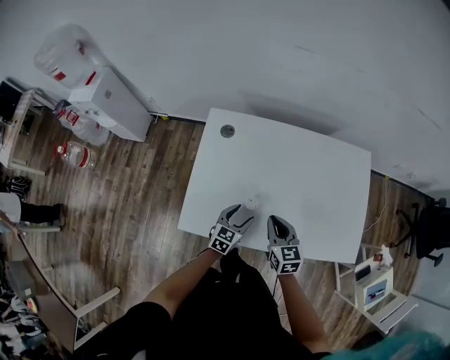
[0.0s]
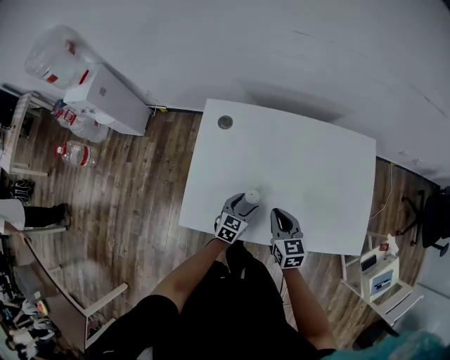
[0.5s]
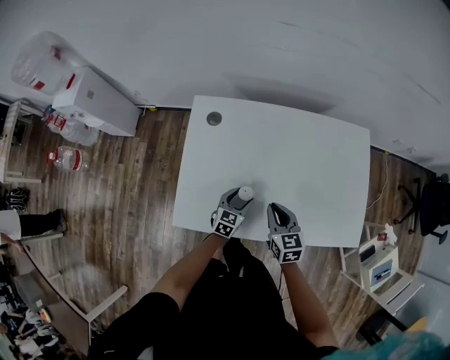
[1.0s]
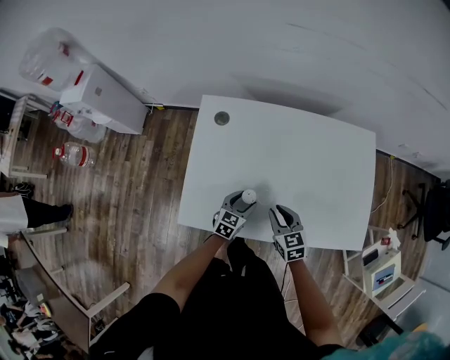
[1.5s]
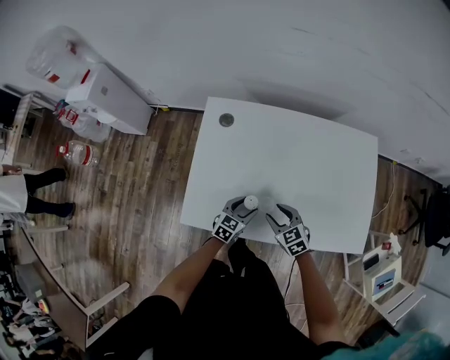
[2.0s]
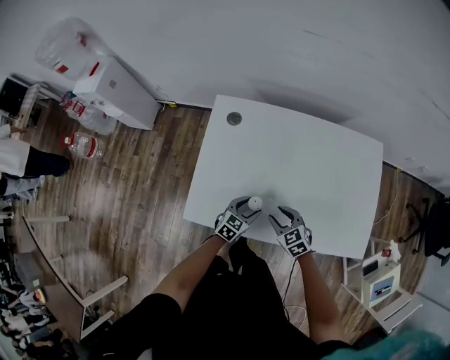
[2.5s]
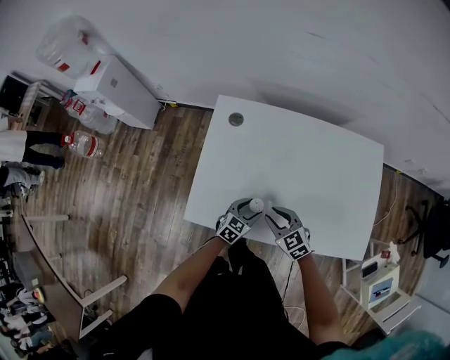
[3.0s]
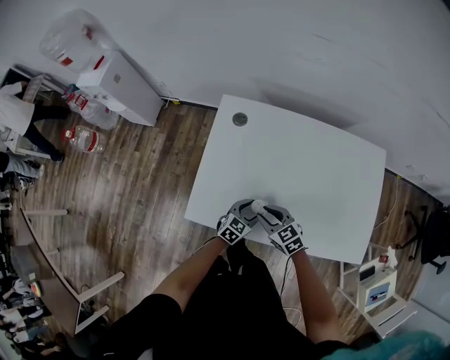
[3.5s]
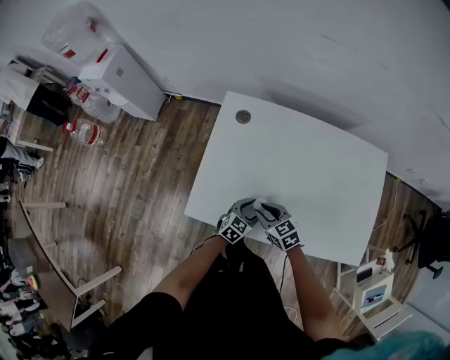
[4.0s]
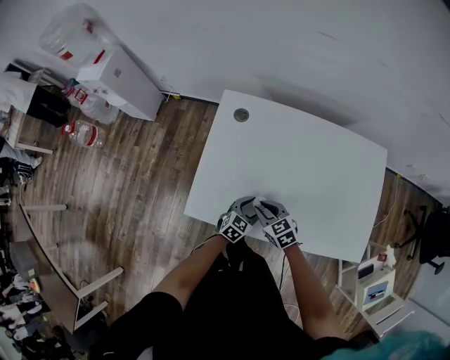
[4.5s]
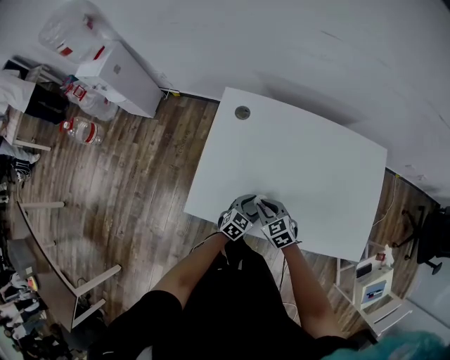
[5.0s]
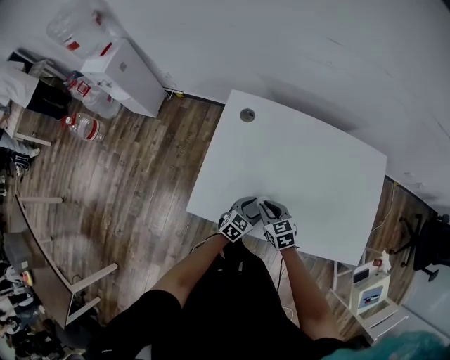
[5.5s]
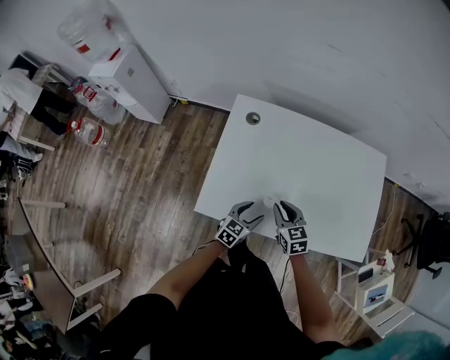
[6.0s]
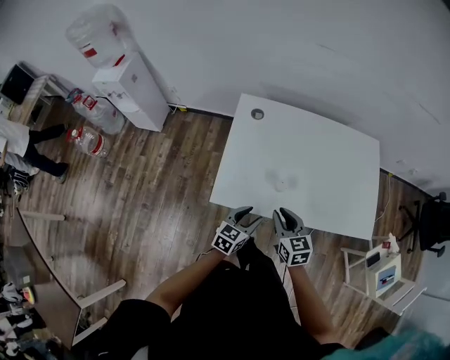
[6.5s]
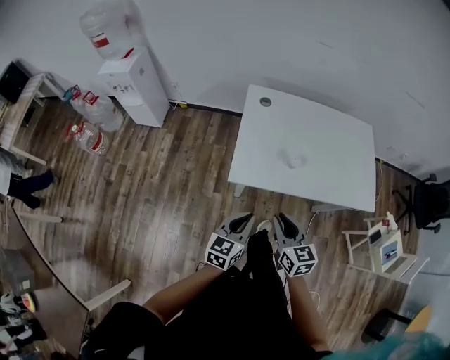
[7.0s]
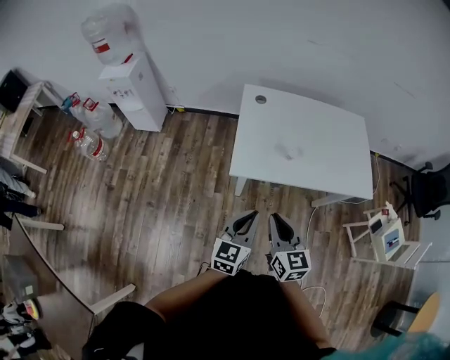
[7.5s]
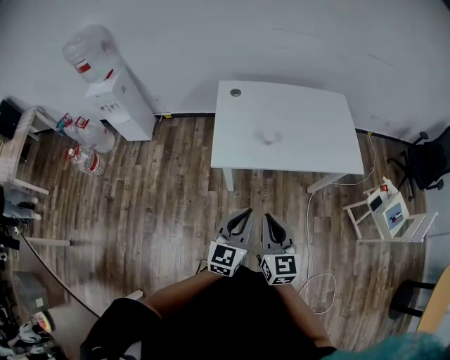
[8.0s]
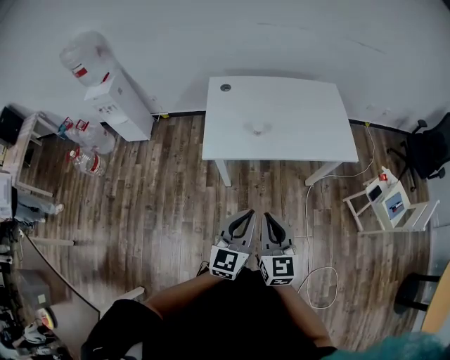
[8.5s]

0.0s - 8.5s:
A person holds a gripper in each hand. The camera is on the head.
0.0s - 2.0s: The right gripper moves downward, some 10 cm, rotates roughly 30 degrees, and opens.
2.0s - 4.0s: The right gripper goes some 5 cm to the left.
4.0s - 6.5s: The left gripper goes approximately 20 cm upward, backward and to the left; the right gripper moves upward and backward, about 15 cm, and rotates roughly 30 degrees.
6.5s - 8.5s: The grippers both shift backward and upward by about 35 cm. The right gripper turns by about 30 degrees, while the left gripper turns by roughly 20 degrees, and closes its fingers.

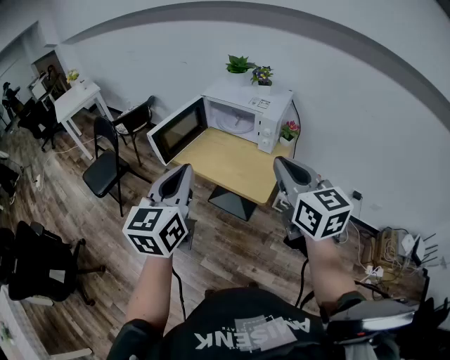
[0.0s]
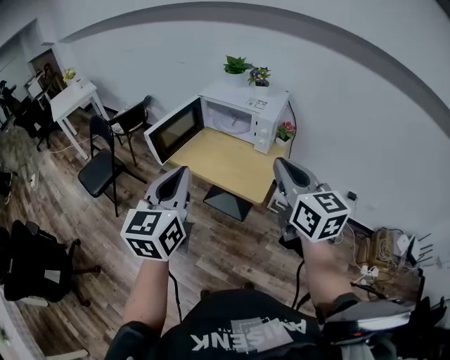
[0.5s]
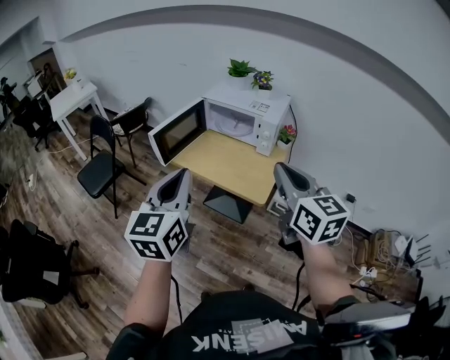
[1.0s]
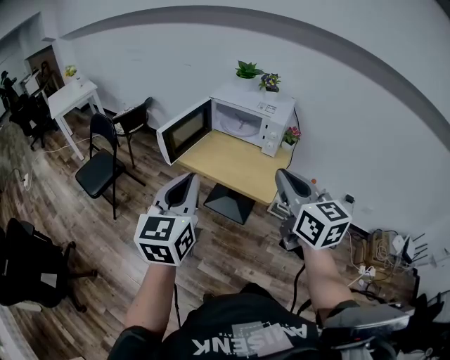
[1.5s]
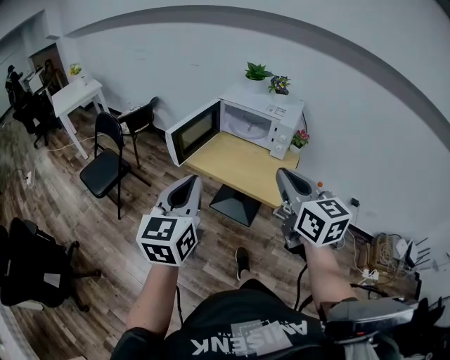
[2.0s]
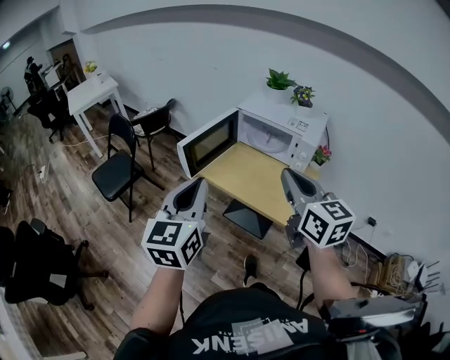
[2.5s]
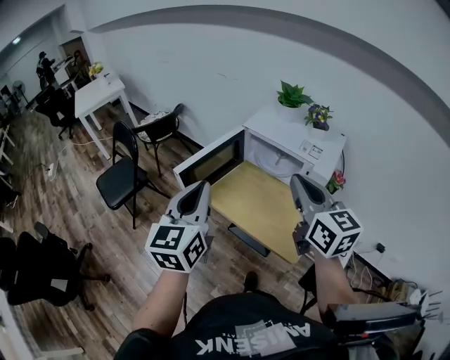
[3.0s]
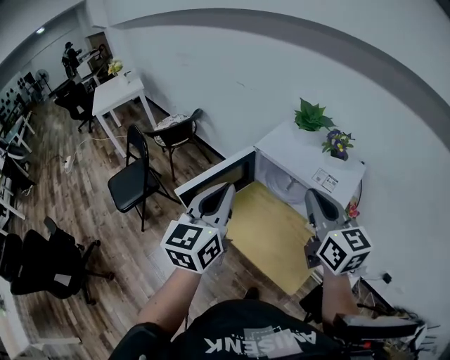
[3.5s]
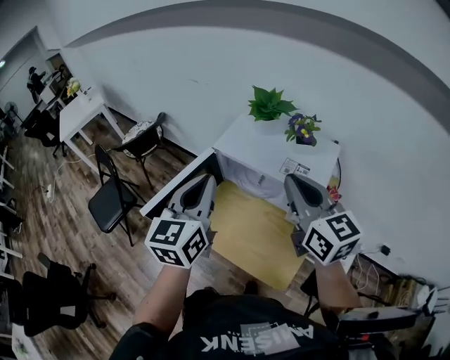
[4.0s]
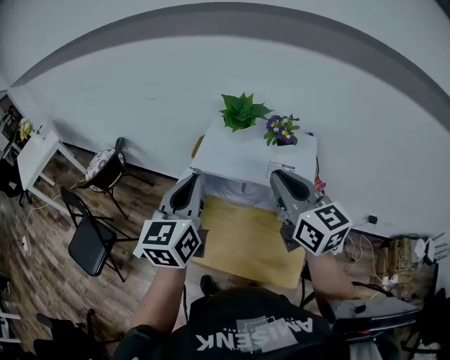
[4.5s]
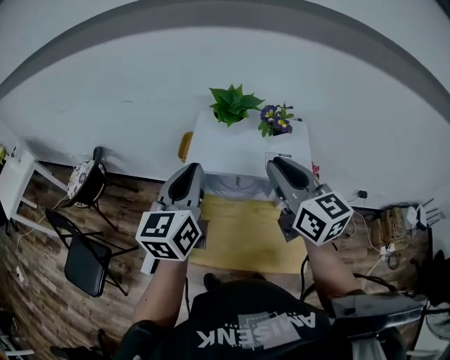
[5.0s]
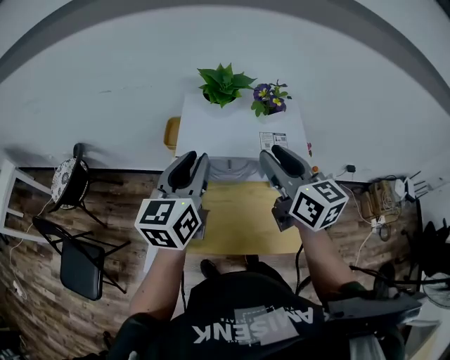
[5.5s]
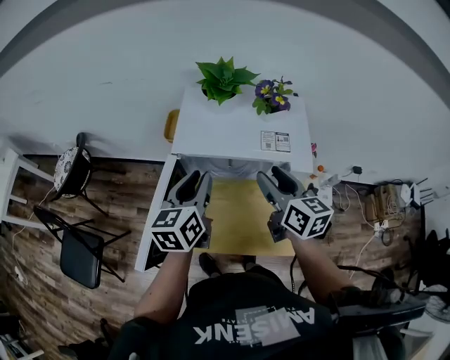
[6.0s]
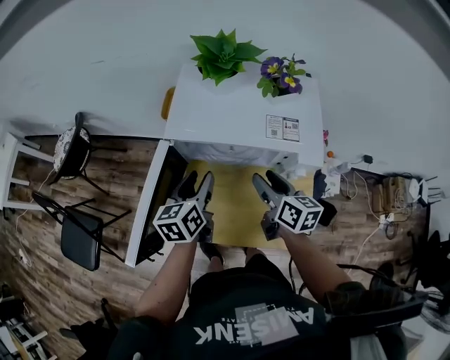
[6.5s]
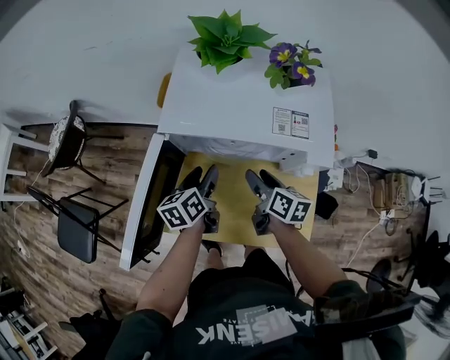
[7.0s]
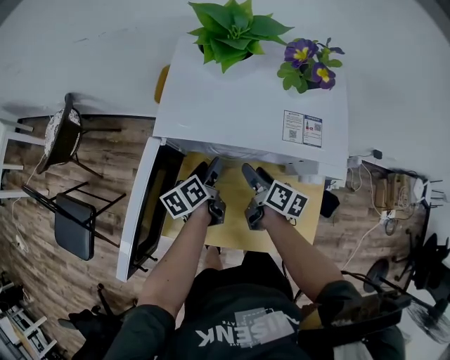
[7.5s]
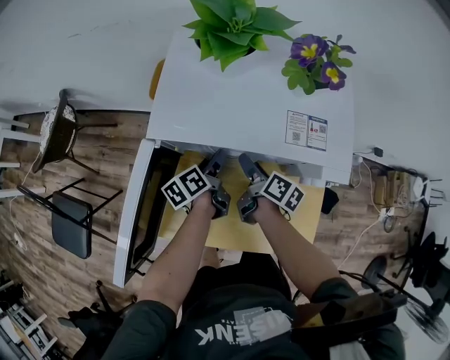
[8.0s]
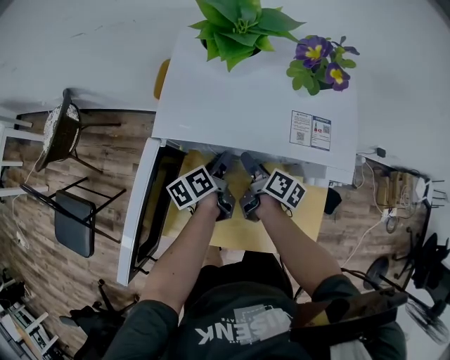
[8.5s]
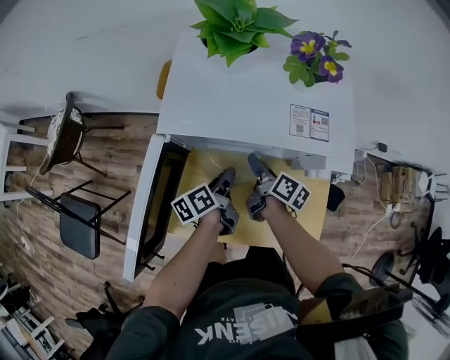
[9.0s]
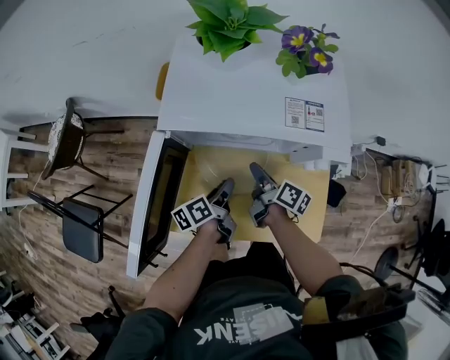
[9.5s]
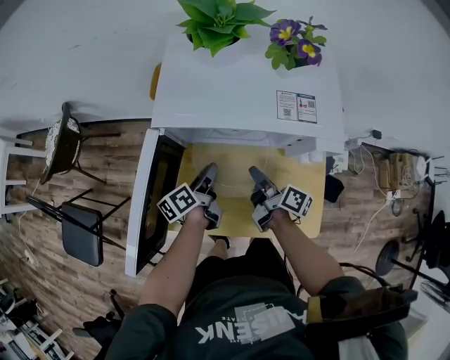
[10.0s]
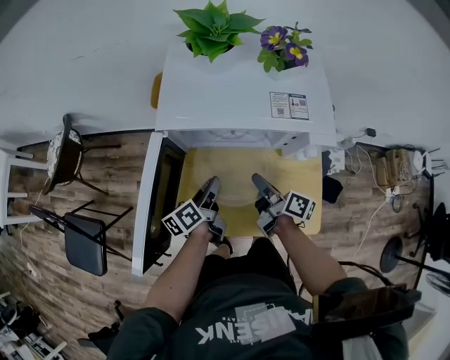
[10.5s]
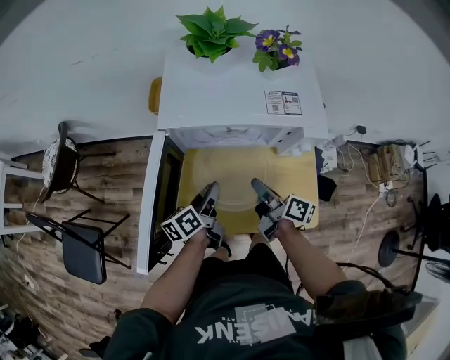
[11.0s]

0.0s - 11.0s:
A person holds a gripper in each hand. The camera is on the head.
0.0s - 2.0s: The grippers both shift to the left by about 10 cm.
2.0s - 3.5s: The two grippers go approximately 35 cm forward.
3.5s - 5.5s: The right gripper shifts by roughly 10 cm, changes its angle by approximately 30 degrees, and opens its fingers. Meanwhile the left gripper moves about 20 cm, changes its angle by roughly 40 degrees, and opens.
5.5s - 7.5s: Both grippers travel together downward, roughly 35 cm. The right gripper rotates around the line of its fingers by some 40 degrees, clockwise from behind, and opens its fingers. The left gripper twists about 40 degrees counterclockwise, seen from behind, and opens its fingers.
7.5s - 9.0s: The left gripper shifts by some 5 cm, and closes its fingers.
9.0s - 11.0s: The left gripper is displaced backward by some 10 cm; the right gripper travels backward and upward by some 15 cm, and closes.

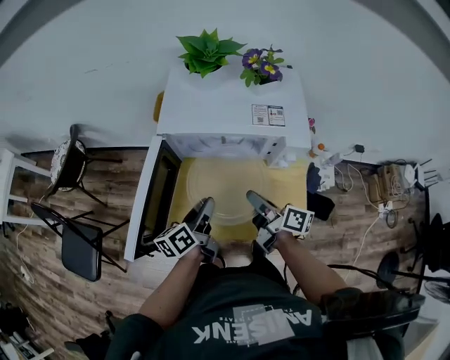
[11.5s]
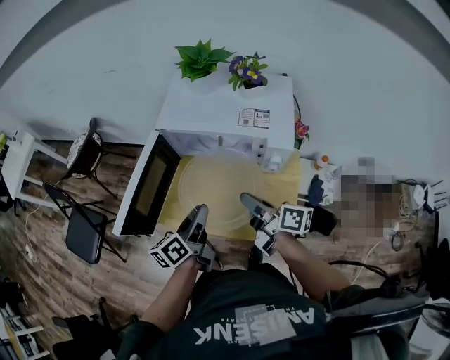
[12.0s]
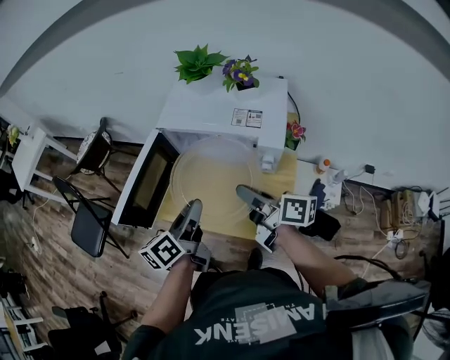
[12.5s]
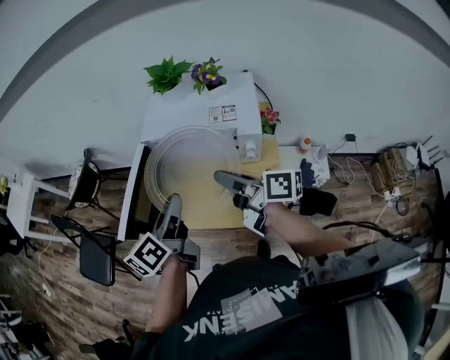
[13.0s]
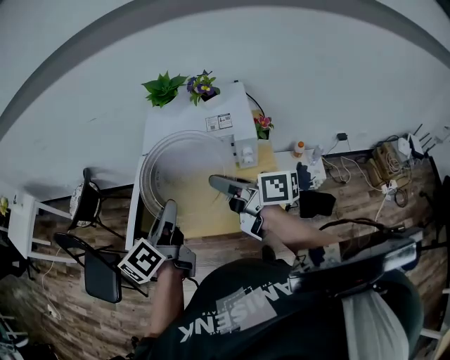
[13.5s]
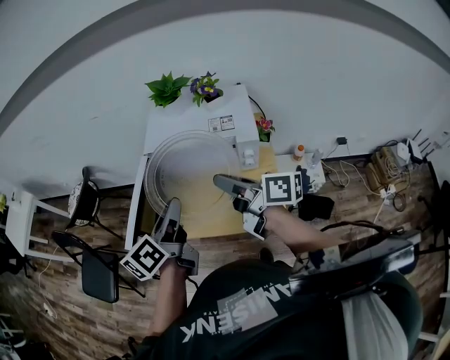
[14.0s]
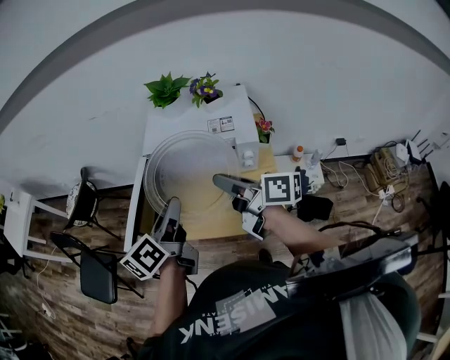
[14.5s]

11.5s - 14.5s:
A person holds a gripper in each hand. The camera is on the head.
11.5s - 13.0s: The left gripper is displaced upward and backward by approximately 20 cm. Meanwhile the right gripper heads upward, covering about 15 cm, and changes its angle by about 20 degrees.
13.0s - 14.5s: There are only small adjustments of the grippers.

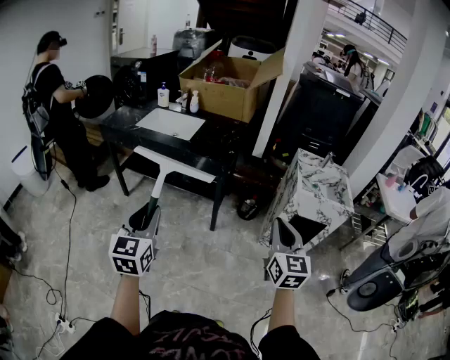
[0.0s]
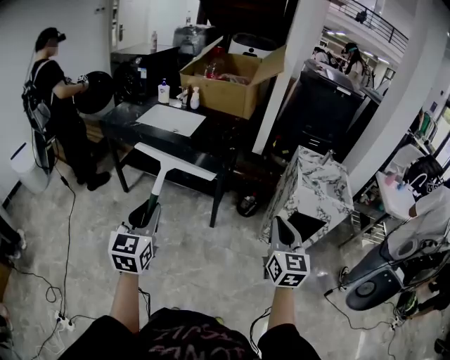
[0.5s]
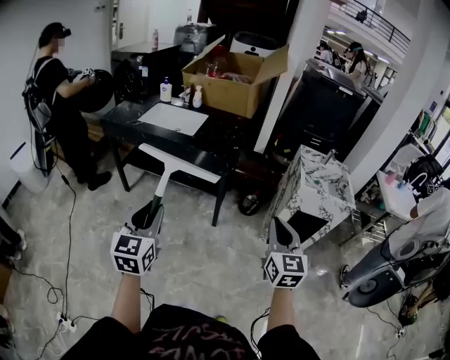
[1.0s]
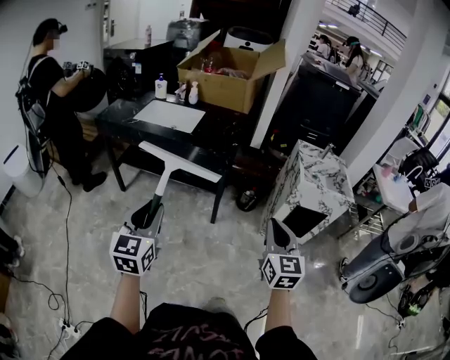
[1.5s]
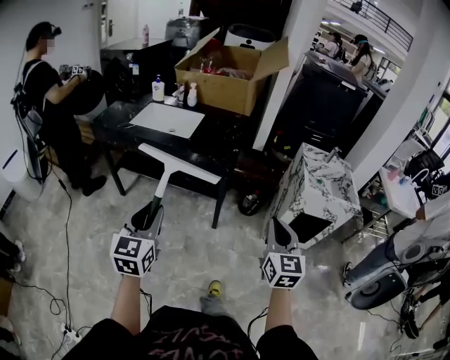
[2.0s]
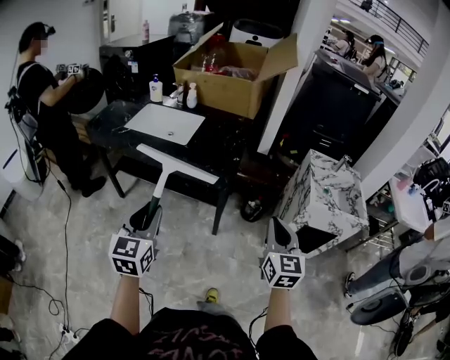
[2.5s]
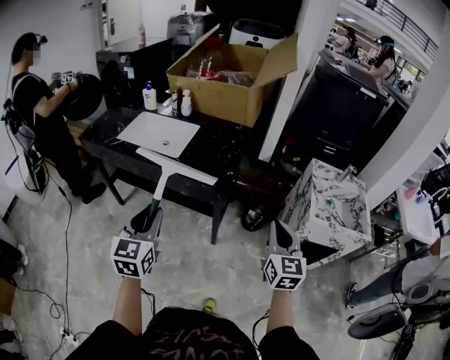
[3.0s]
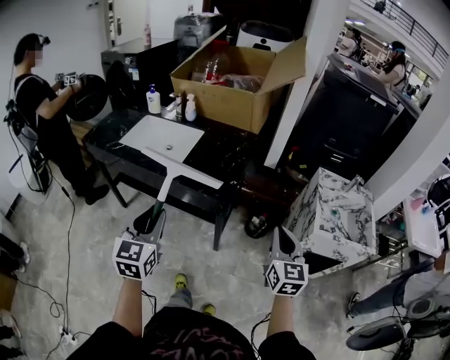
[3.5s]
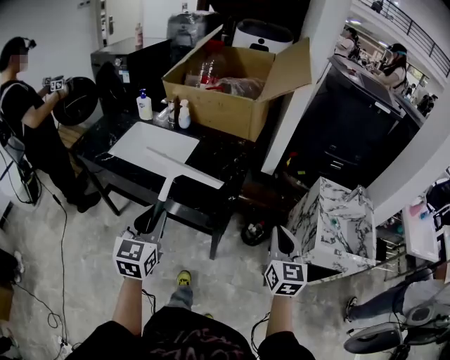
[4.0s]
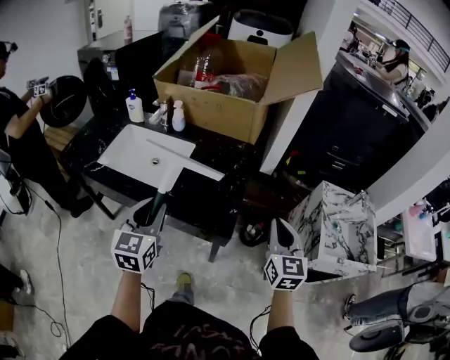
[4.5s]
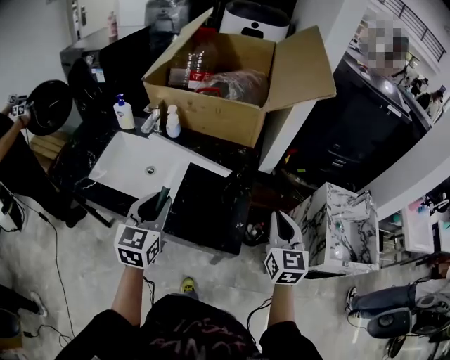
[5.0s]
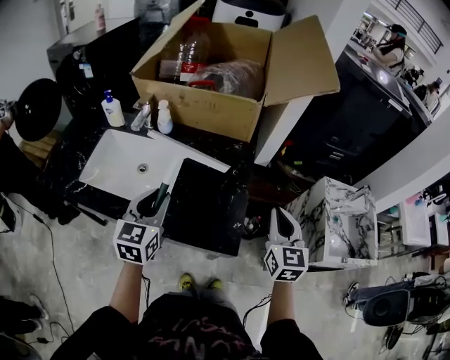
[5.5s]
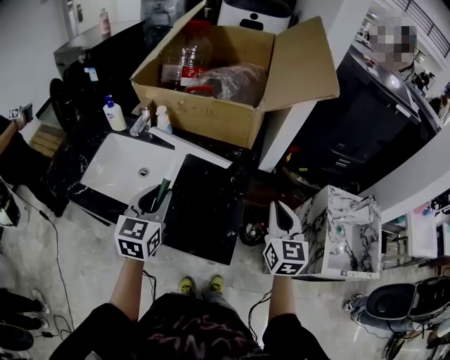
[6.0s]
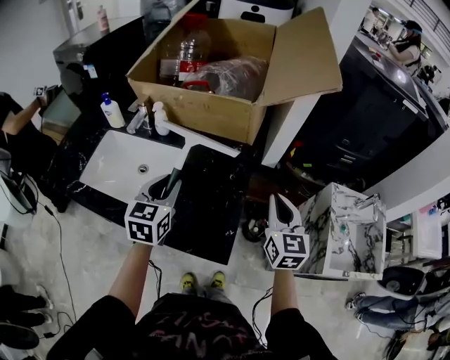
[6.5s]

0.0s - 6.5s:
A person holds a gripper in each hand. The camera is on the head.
0.0s - 2.0s: The right gripper travels forward and to the left by some 10 cm, while the left gripper travels forward by about 10 cm.
2.0s - 4.5s: The pair of grippers is taken forward, roughly 40 cm.
4.5s - 6.5s: The grippers both shift forward by some 20 cm.
